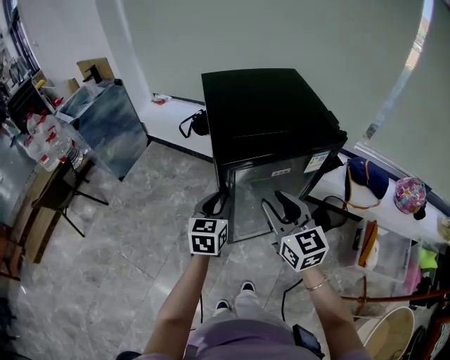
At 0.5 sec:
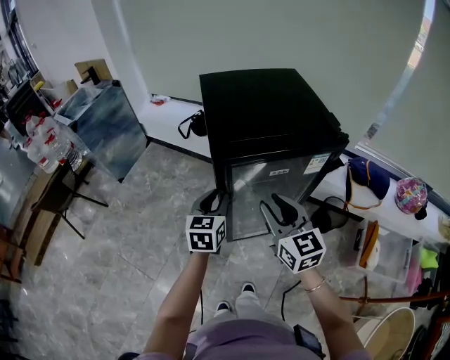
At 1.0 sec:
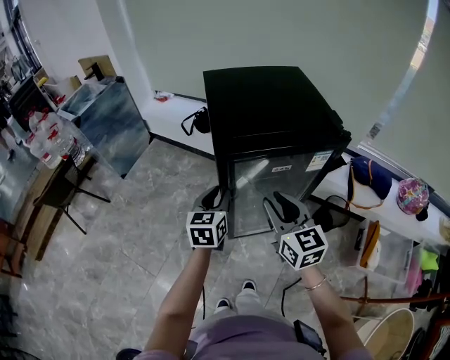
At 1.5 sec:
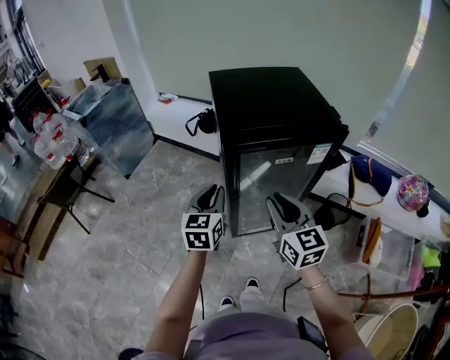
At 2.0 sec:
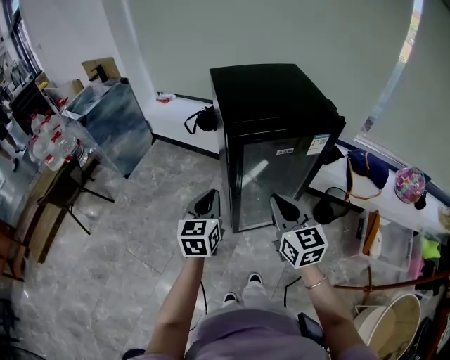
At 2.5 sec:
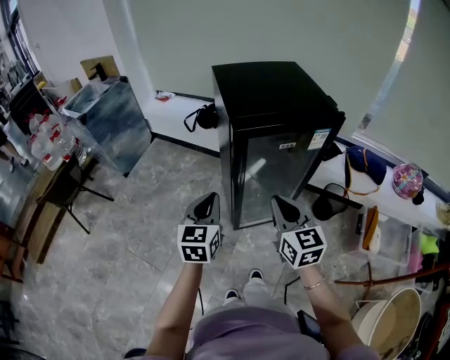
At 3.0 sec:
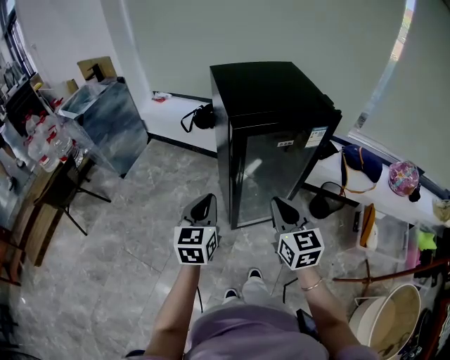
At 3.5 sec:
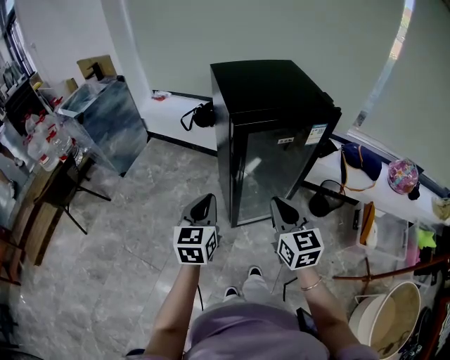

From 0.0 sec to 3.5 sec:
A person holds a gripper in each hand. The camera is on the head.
From 0.0 sec to 2.0 sec: The left gripper travels to the left and backward by roughly 10 cm, while the right gripper travels backward by some 5 cm, and closes its fingers.
From 2.0 sec to 3.5 sec: The right gripper moves some 5 cm. Meanwhile the left gripper is displaced backward by about 5 cm.

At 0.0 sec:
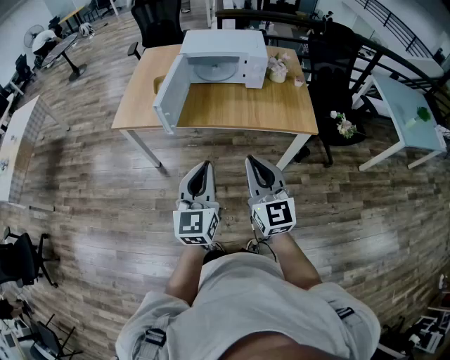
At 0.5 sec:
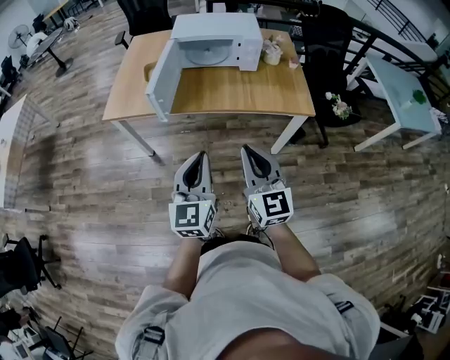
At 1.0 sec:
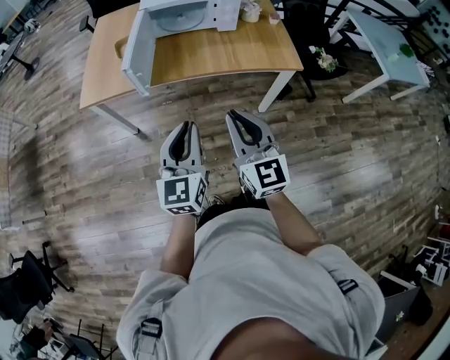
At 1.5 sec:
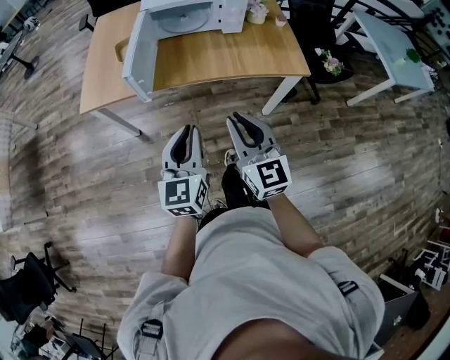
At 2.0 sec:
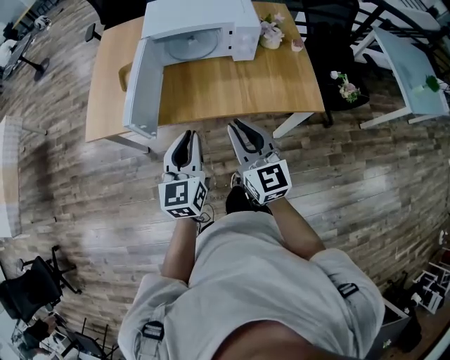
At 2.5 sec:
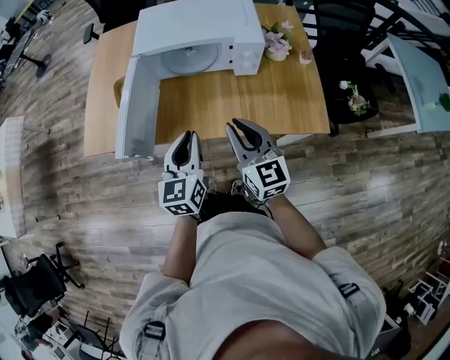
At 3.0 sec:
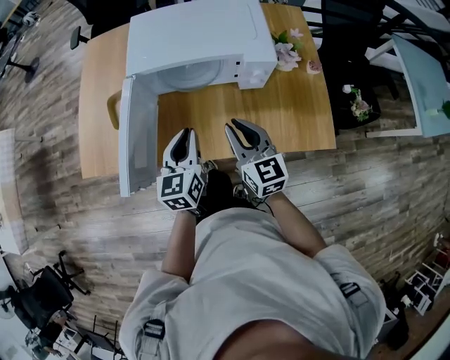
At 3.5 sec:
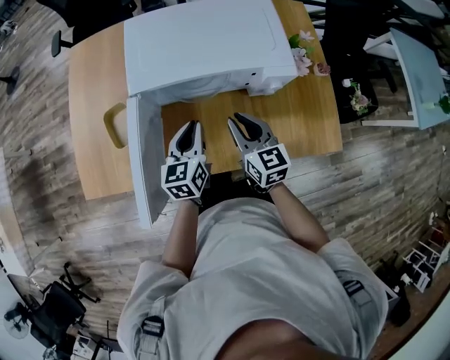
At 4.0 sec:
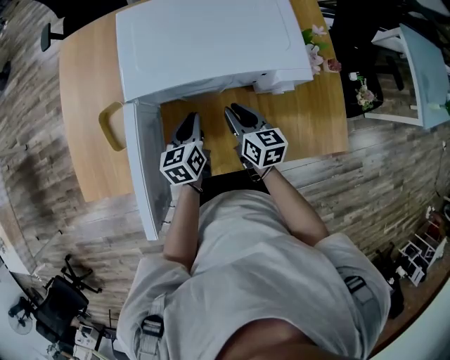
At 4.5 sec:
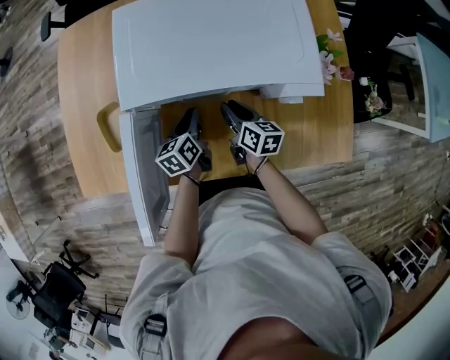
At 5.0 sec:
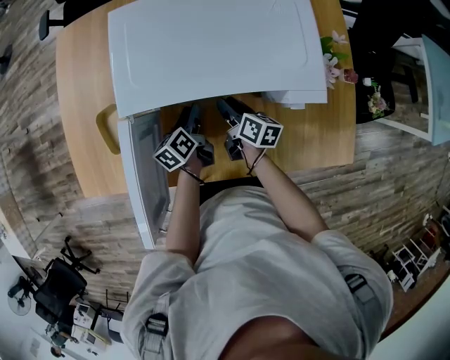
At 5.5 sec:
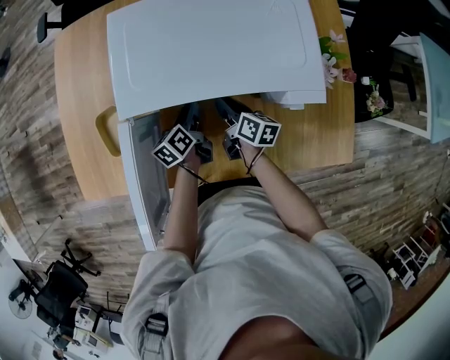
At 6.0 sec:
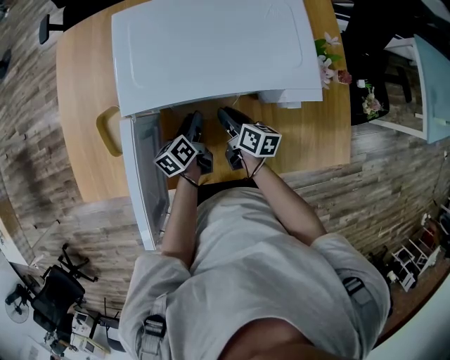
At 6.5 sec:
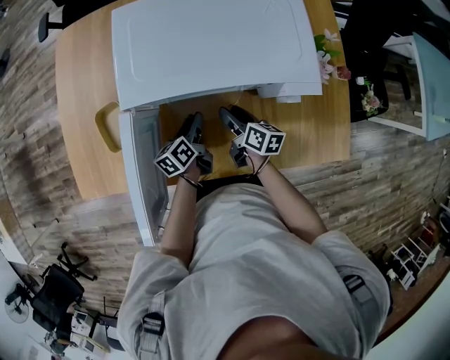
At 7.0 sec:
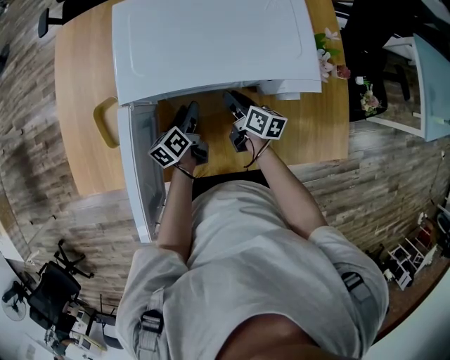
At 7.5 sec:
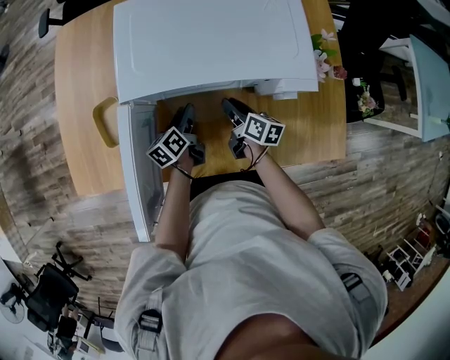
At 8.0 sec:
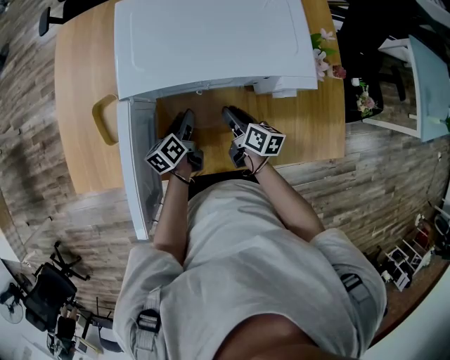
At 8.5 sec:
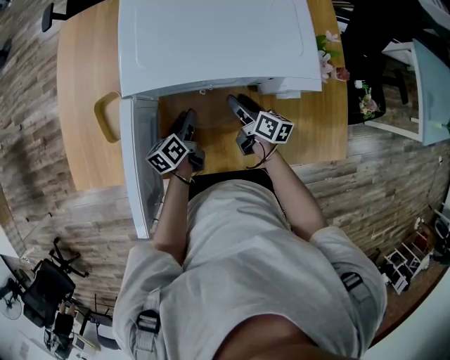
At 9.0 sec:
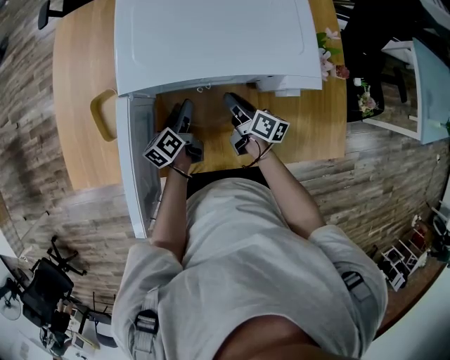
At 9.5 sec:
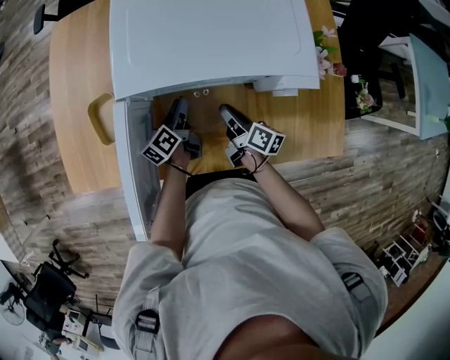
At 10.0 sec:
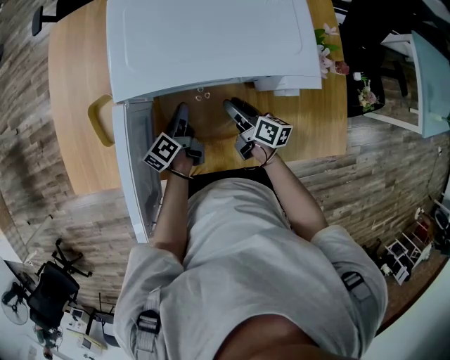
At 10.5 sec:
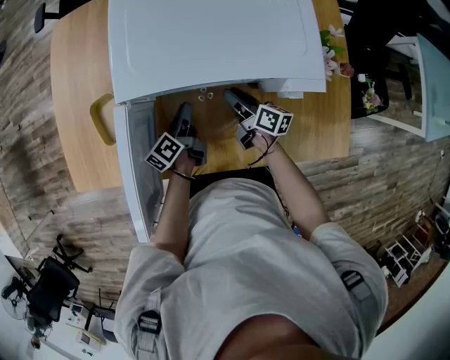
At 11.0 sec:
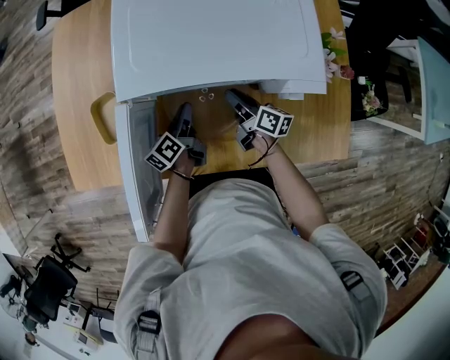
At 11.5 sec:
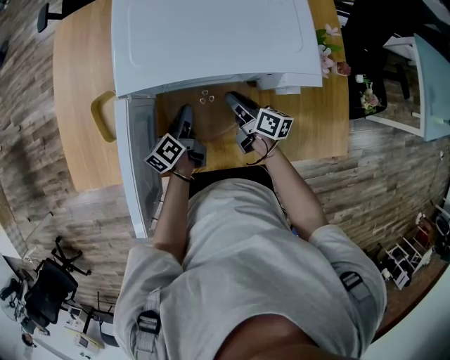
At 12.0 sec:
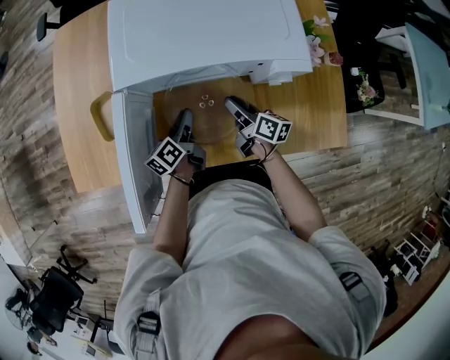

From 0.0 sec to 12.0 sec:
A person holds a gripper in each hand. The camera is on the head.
From 0.0 sec to 2.0 sec: Both grippers travel together forward, about 20 cm.
From 2.0 sec to 4.0 sec: The two grippers go about 40 cm forward and downward. The right gripper swivels about 40 degrees. Meanwhile the left gripper turns by roughly 30 degrees.
From 4.0 sec to 6.0 sec: Both grippers travel together downward, some 10 cm. The right gripper changes its angle by some 30 degrees. Meanwhile the left gripper changes its angle by about 20 degrees.
From 6.0 sec to 12.0 sec: There are only small adjustments of the grippers.

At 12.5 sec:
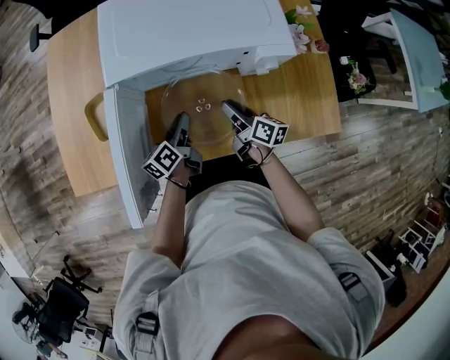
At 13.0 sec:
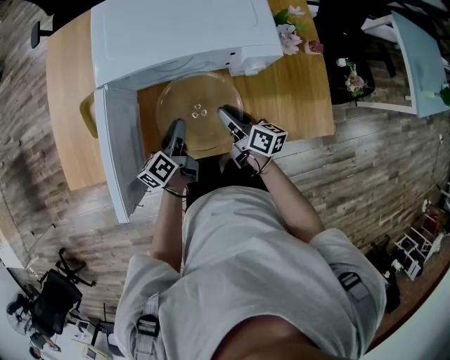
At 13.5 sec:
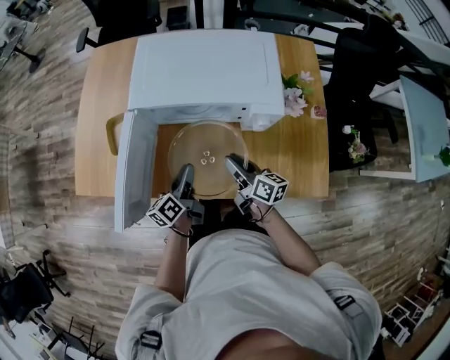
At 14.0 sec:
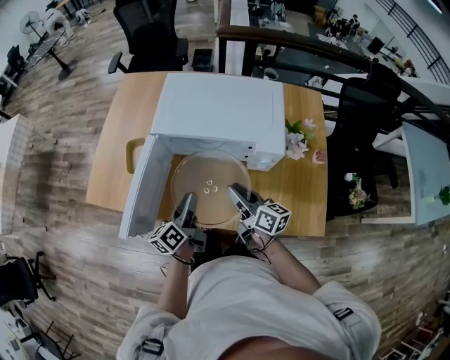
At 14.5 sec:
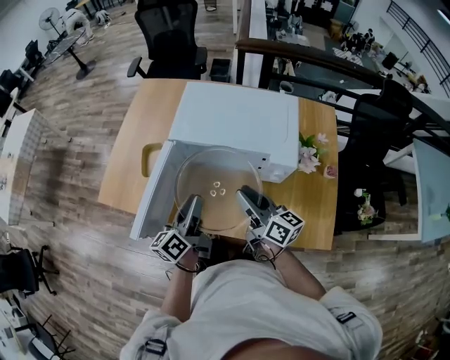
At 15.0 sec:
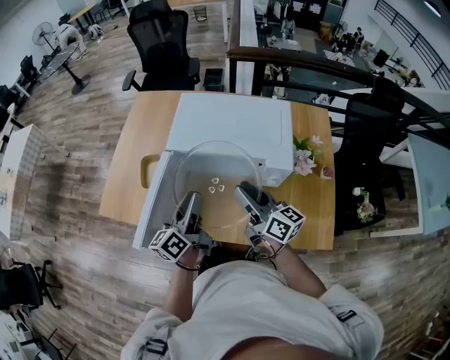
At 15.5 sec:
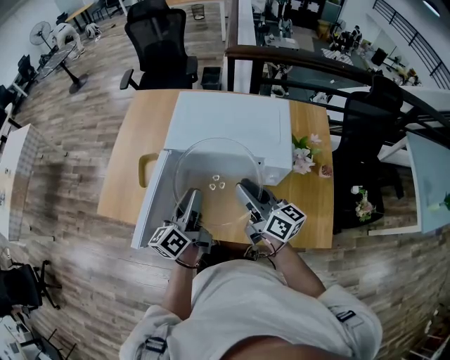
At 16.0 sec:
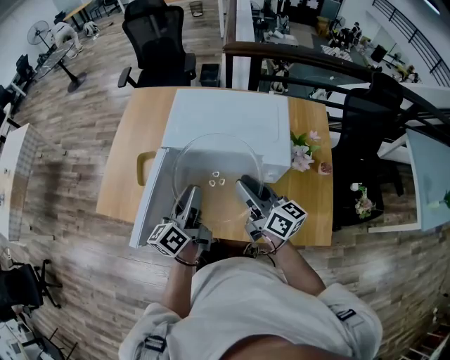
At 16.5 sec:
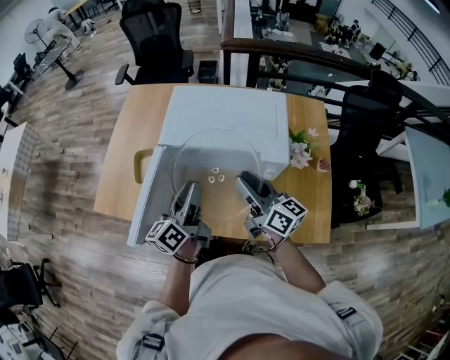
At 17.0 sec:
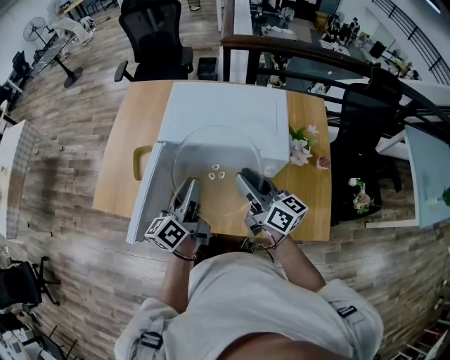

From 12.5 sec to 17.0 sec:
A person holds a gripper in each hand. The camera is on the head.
From 12.5 sec to 14.5 sec: The two grippers go roughly 20 cm upward. The left gripper changes its angle by approximately 30 degrees; the right gripper changes its angle by some 30 degrees.
From 14.5 sec to 17.0 sec: The right gripper shifts by approximately 5 cm. The left gripper moves approximately 5 cm.

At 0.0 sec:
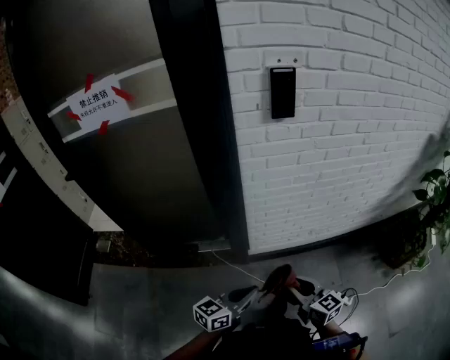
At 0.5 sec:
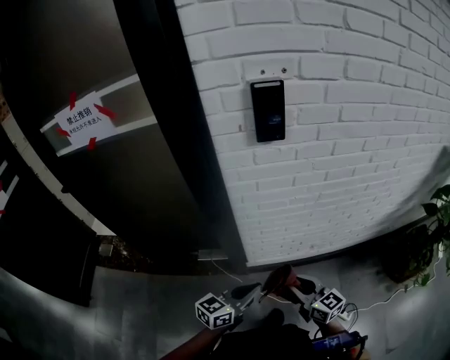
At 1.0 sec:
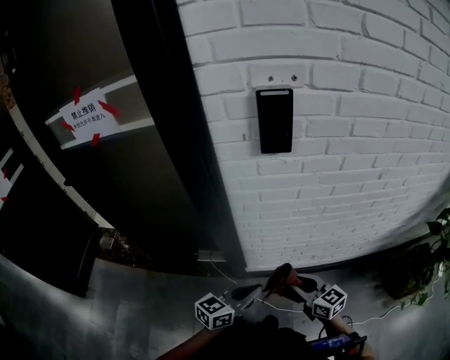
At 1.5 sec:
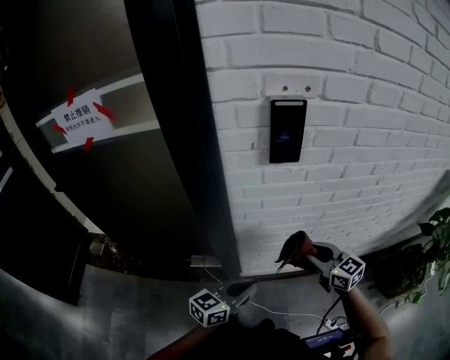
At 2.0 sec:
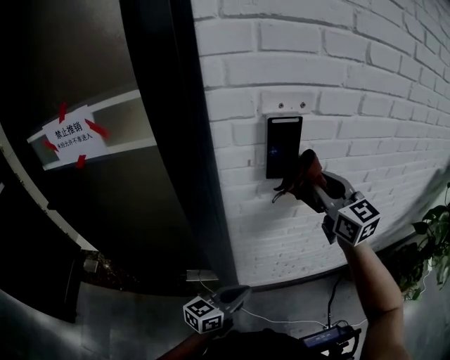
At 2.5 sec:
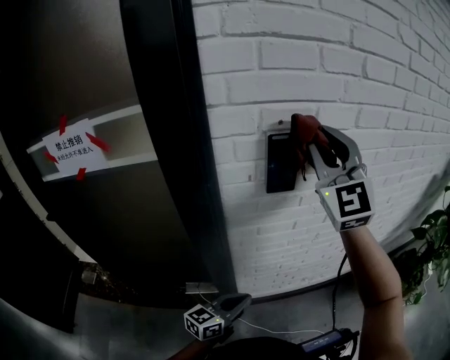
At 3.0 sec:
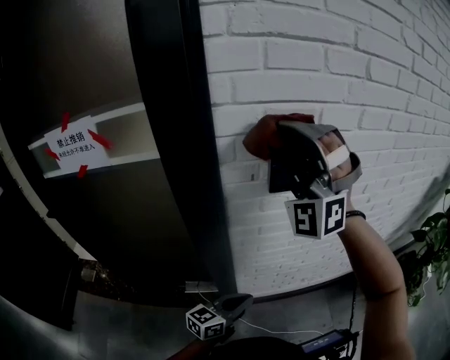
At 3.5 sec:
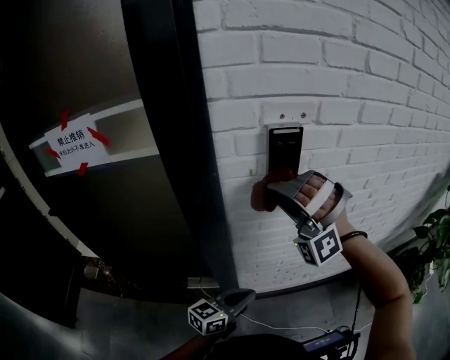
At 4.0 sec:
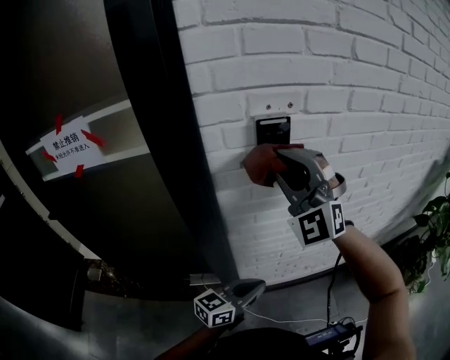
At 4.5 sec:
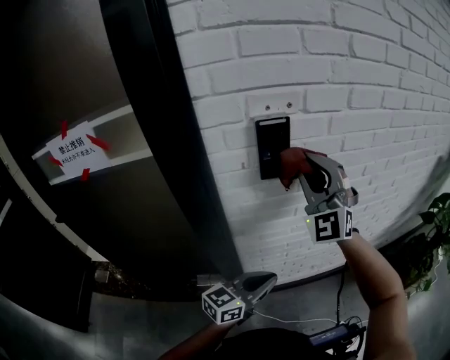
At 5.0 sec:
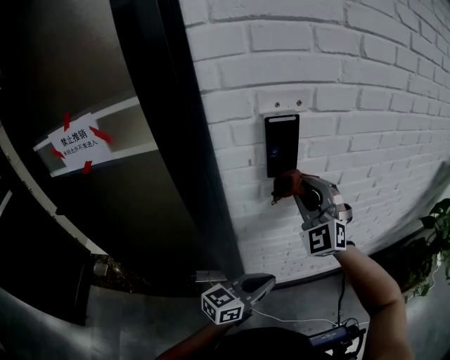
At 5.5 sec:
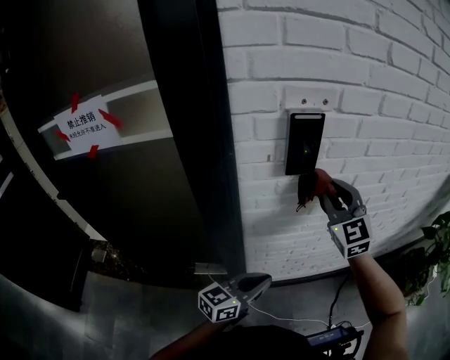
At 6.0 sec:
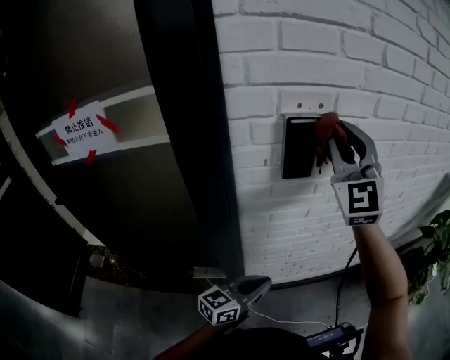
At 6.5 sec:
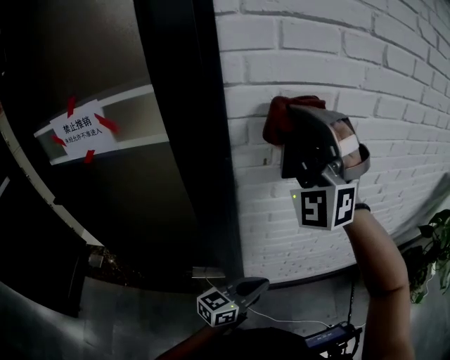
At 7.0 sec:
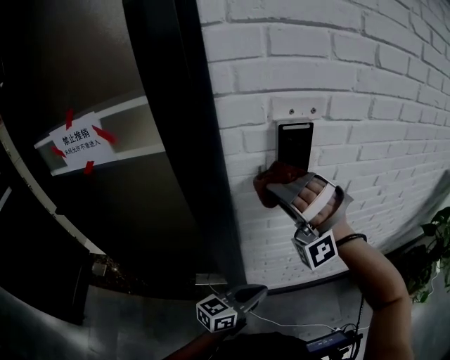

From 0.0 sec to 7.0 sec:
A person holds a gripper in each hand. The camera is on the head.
From 0.0 sec to 2.0 sec: The left gripper travels forward by about 20 cm. Meanwhile the right gripper goes some 50 cm forward and upward, and rotates some 30 degrees.
From 2.0 sec to 3.5 sec: The right gripper shifts about 15 cm to the left and backward, goes upward and returns, approximately 15 cm each way, and rotates around the line of its fingers by about 100 degrees, counterclockwise from behind.
From 3.5 sec to 5.0 sec: The left gripper moves approximately 5 cm. The right gripper travels to the right and forward by approximately 10 cm, and rolls clockwise, seen from behind, by approximately 50 degrees.
From 5.0 sec to 7.0 sec: The right gripper is displaced to the left and backward by some 10 cm, travels upward and back again, roughly 20 cm each way, and twists about 50 degrees counterclockwise, seen from behind.
